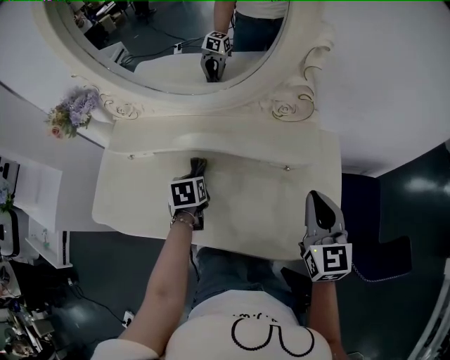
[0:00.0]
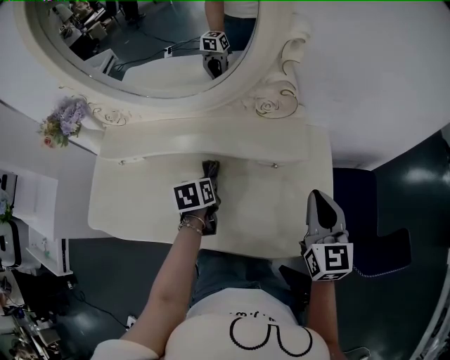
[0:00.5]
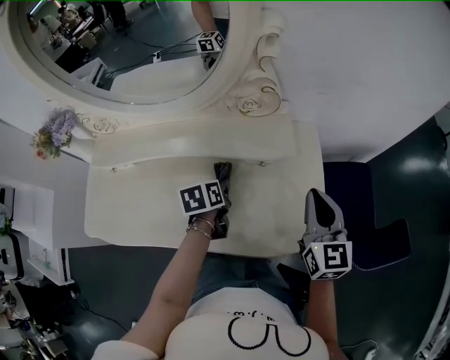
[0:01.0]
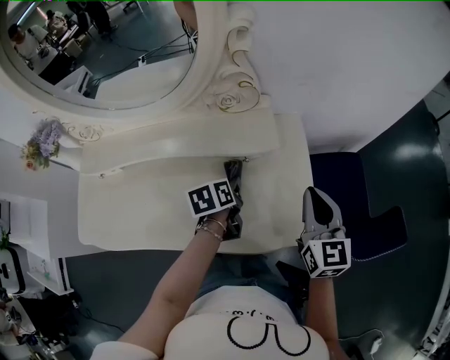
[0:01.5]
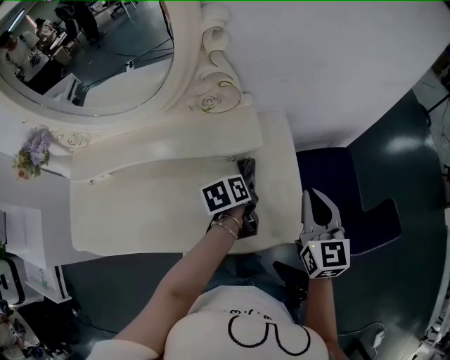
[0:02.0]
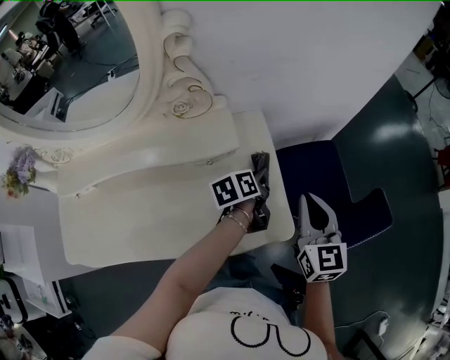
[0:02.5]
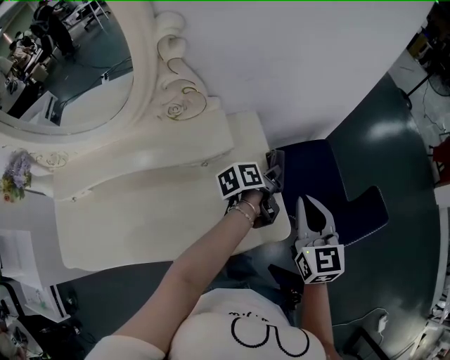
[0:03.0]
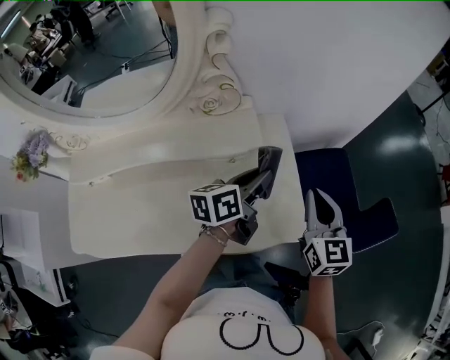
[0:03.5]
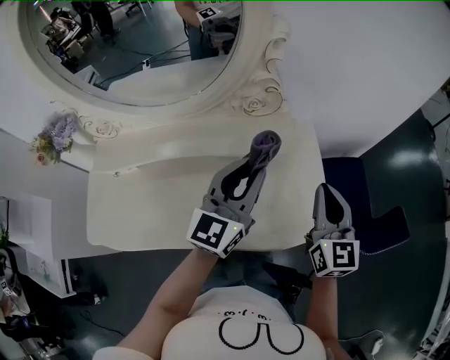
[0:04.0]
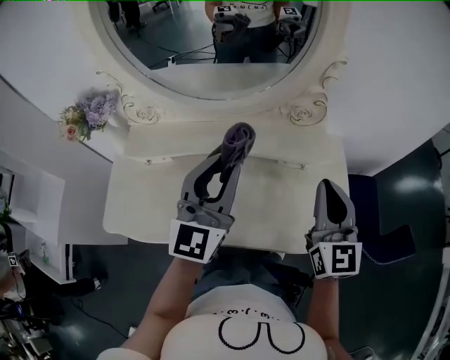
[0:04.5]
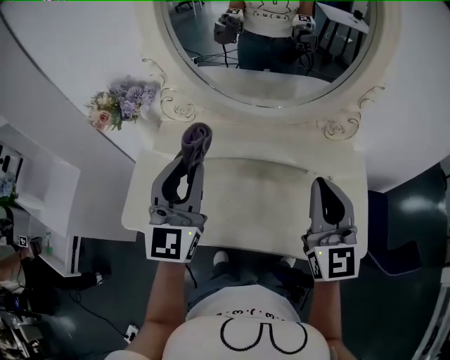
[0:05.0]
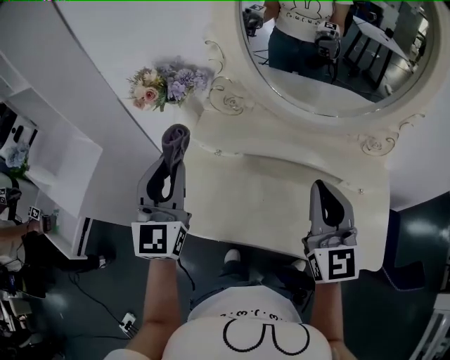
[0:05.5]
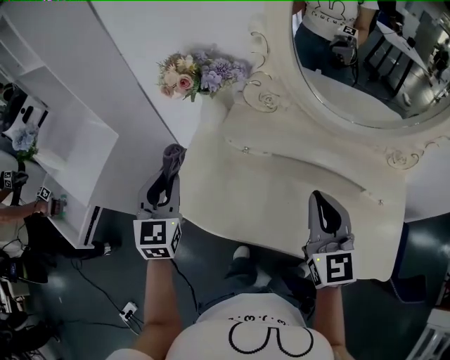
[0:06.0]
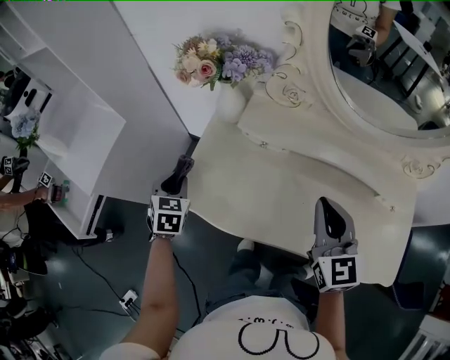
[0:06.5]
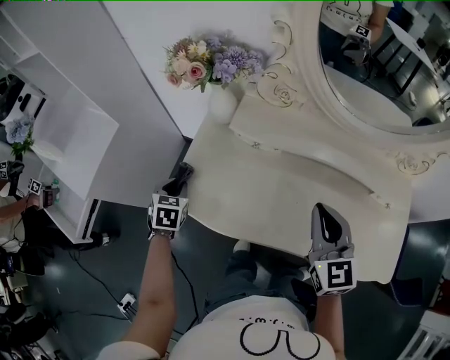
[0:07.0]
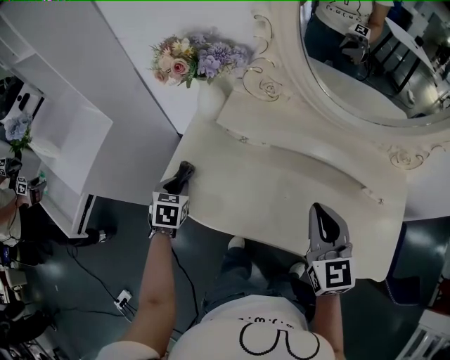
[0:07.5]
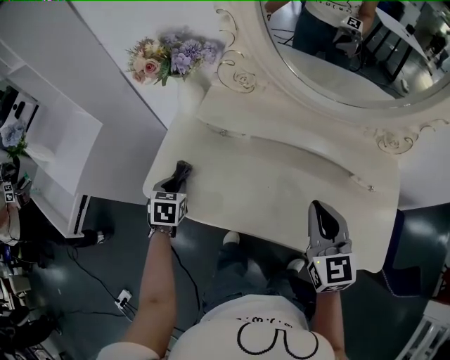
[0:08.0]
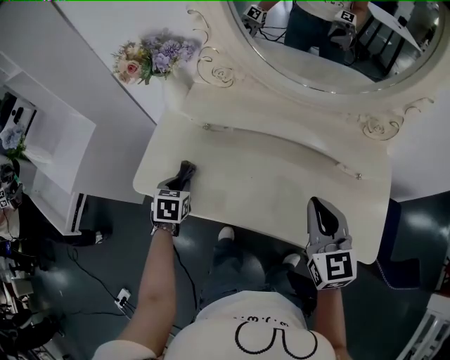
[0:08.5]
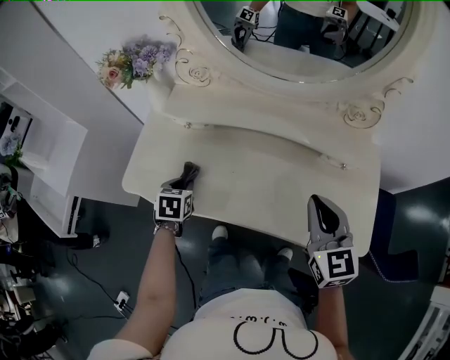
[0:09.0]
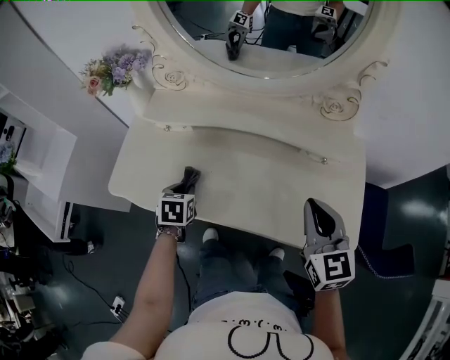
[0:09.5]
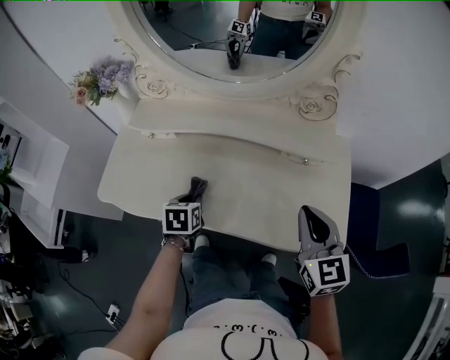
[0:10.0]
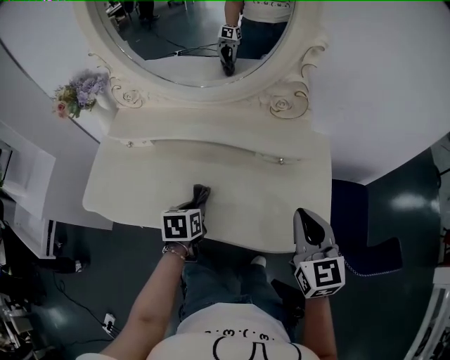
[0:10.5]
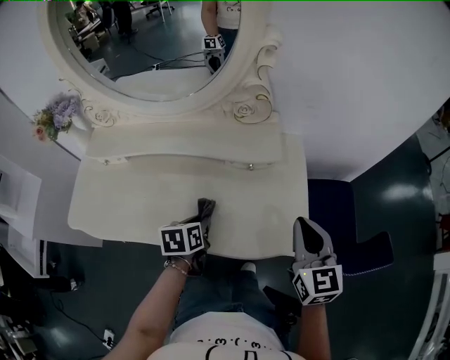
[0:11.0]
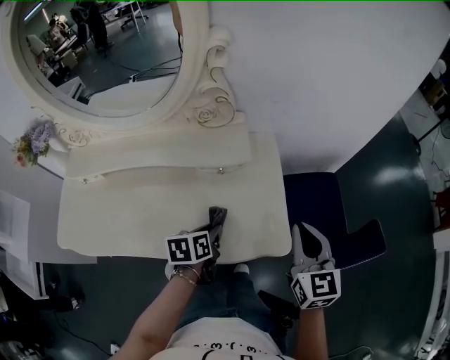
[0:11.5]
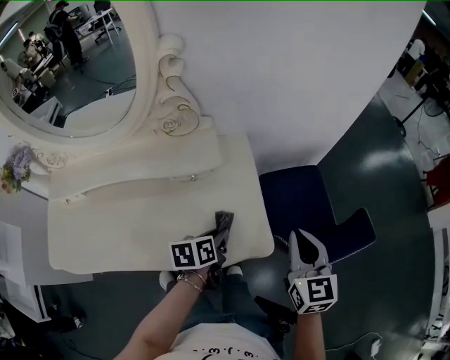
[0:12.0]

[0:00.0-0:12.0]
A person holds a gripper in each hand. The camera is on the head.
0:00.0 to 0:02.0: The right gripper moves roughly 15 cm; the left gripper ends up some 35 cm from where it was, and turns by roughly 30 degrees.
0:02.0 to 0:04.0: The left gripper moves upward, approximately 25 cm, and tilts its fingers about 50 degrees upward. The right gripper shifts some 10 cm to the left and upward.
0:04.0 to 0:06.0: The two grippers travel together, approximately 60 cm. The right gripper turns by approximately 30 degrees. The left gripper changes its angle by roughly 60 degrees.
0:06.0 to 0:08.0: The right gripper heads to the right and downward, covering some 10 cm. The left gripper heads downward, covering roughly 20 cm, and tips its fingers downward by roughly 40 degrees.
0:08.0 to 0:10.0: The left gripper travels to the right by some 30 cm. The right gripper travels to the right and backward by approximately 25 cm.
0:10.0 to 0:12.0: The left gripper ends up some 40 cm from where it was, and rotates some 30 degrees; the right gripper ends up roughly 30 cm from where it was, and swivels roughly 30 degrees.

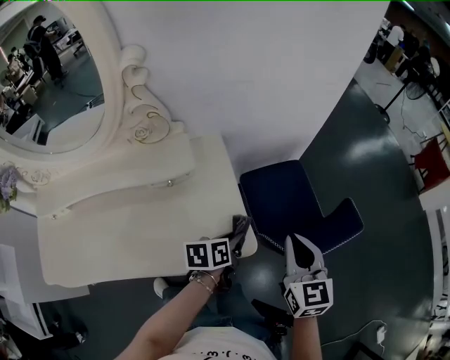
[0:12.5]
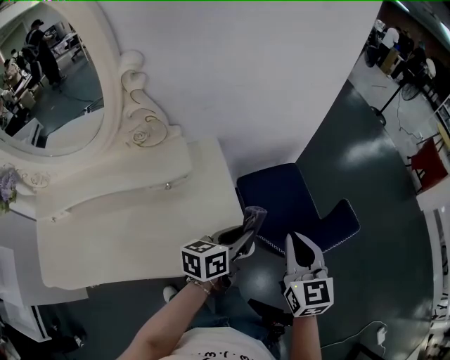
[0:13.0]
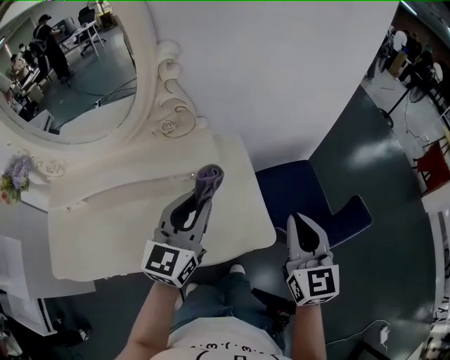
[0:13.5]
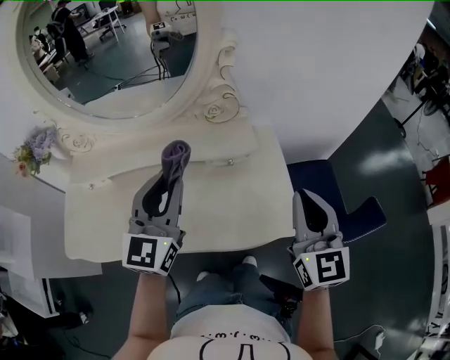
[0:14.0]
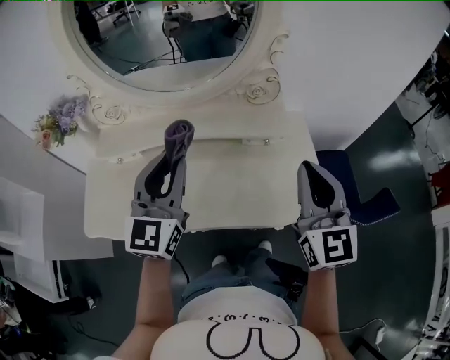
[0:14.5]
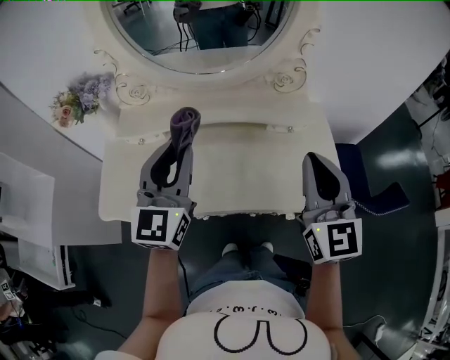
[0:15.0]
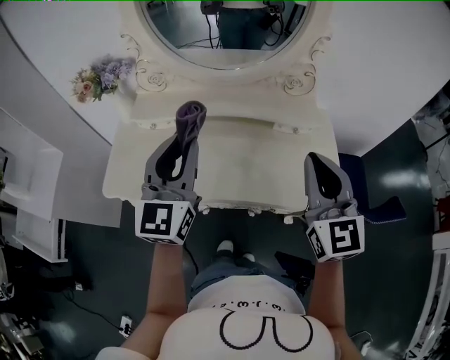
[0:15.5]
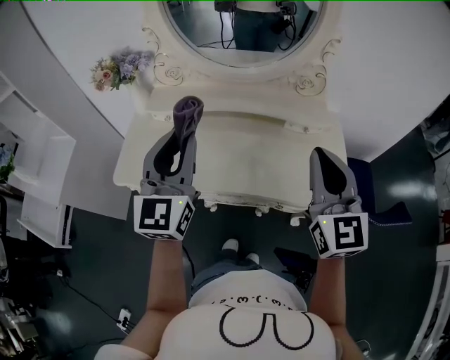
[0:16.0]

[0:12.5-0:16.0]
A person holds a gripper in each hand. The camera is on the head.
0:12.5 to 0:14.5: The right gripper changes place by roughly 35 cm, and changes its angle by about 30 degrees. Meanwhile the left gripper shifts by roughly 50 cm, and points its fingers approximately 40 degrees further upward.
0:14.5 to 0:16.0: The right gripper moves to the left and backward, approximately 10 cm. The left gripper is displaced backward and to the left by approximately 15 cm.

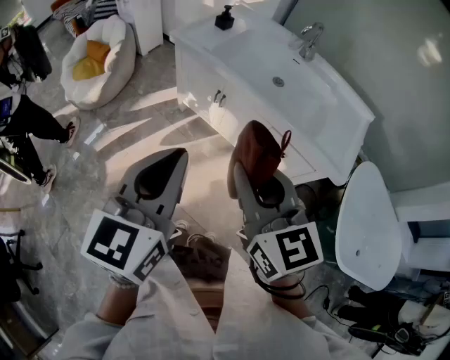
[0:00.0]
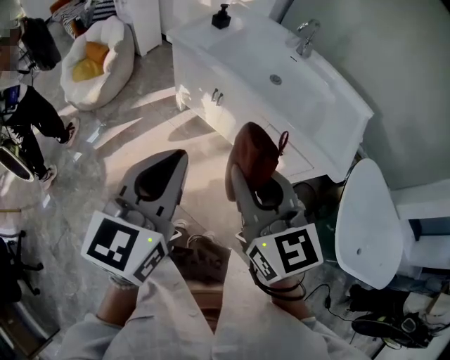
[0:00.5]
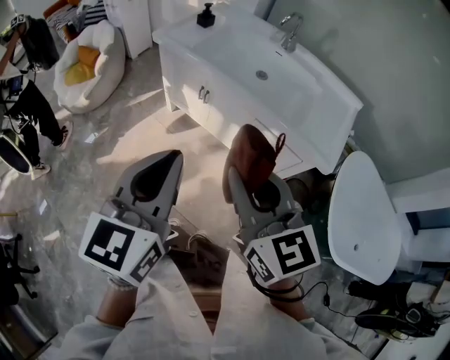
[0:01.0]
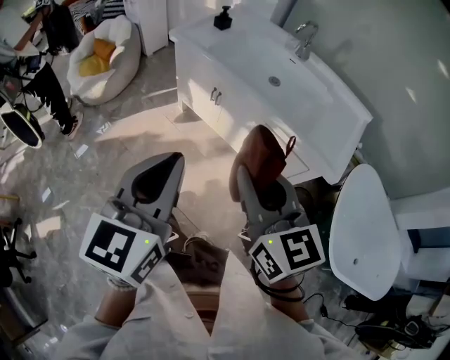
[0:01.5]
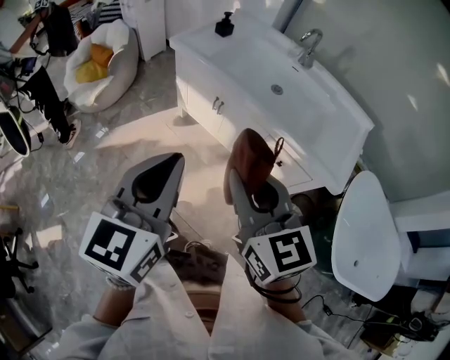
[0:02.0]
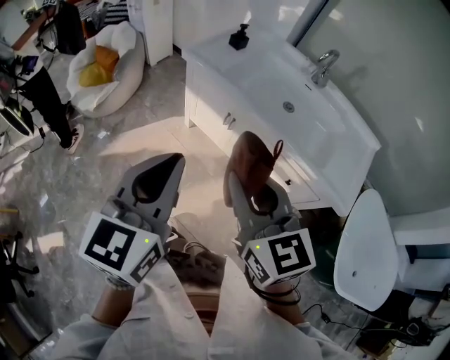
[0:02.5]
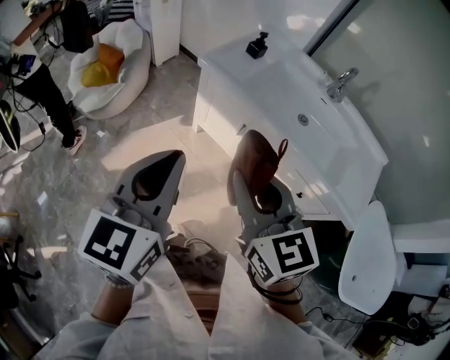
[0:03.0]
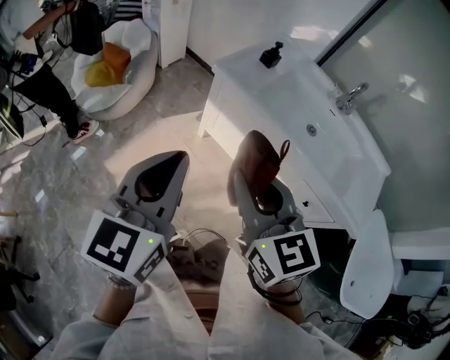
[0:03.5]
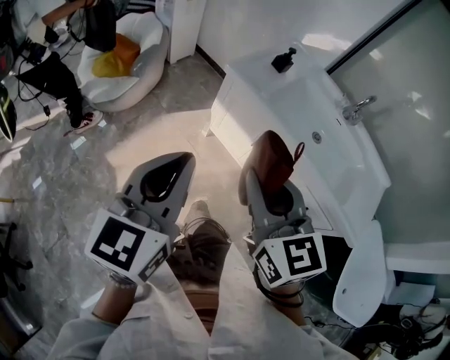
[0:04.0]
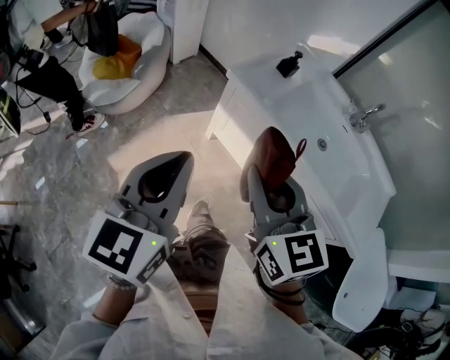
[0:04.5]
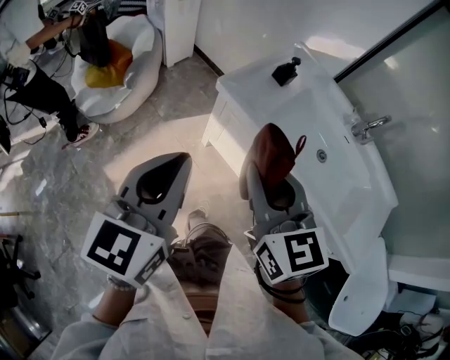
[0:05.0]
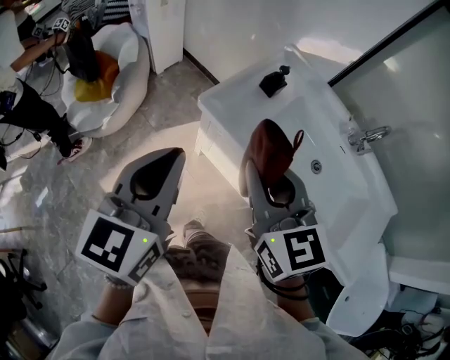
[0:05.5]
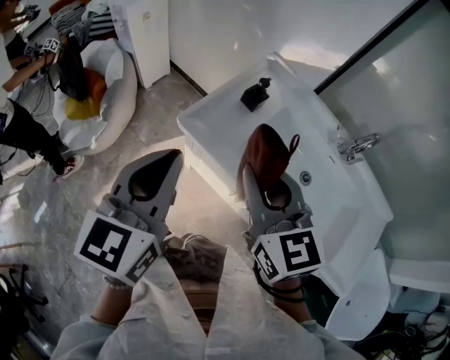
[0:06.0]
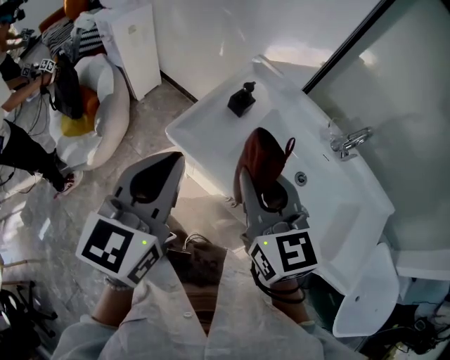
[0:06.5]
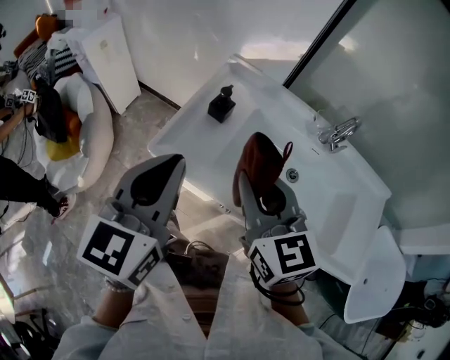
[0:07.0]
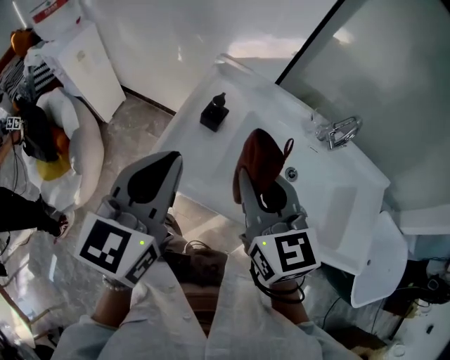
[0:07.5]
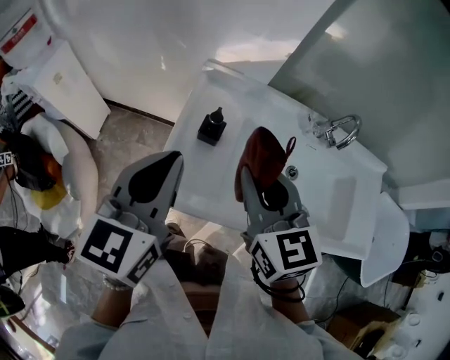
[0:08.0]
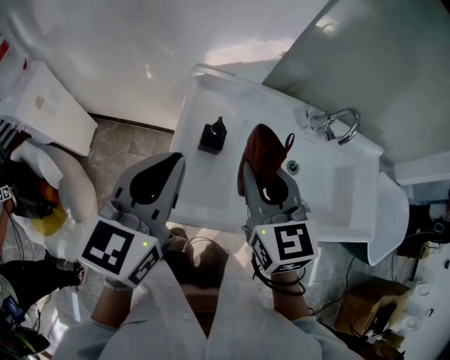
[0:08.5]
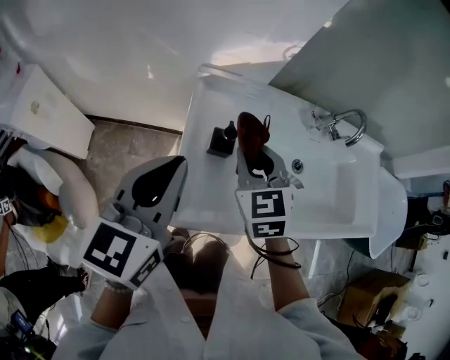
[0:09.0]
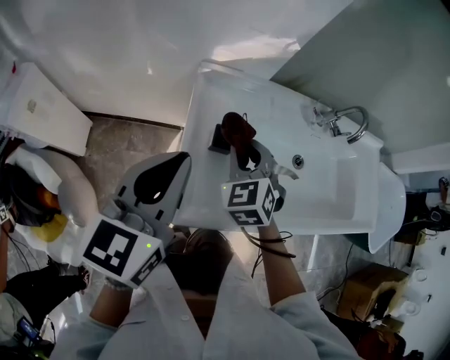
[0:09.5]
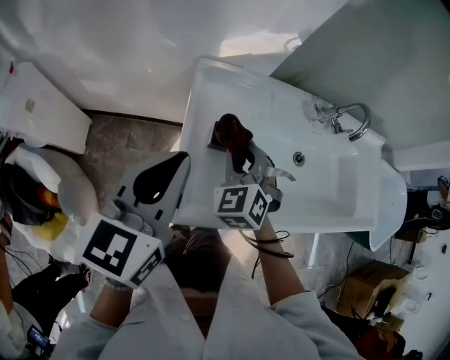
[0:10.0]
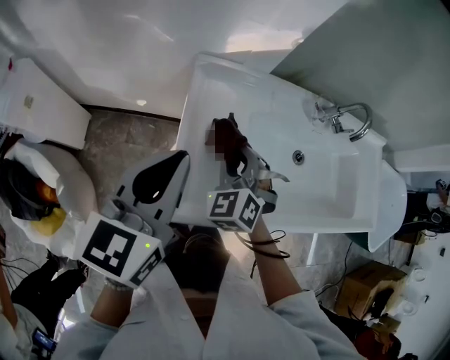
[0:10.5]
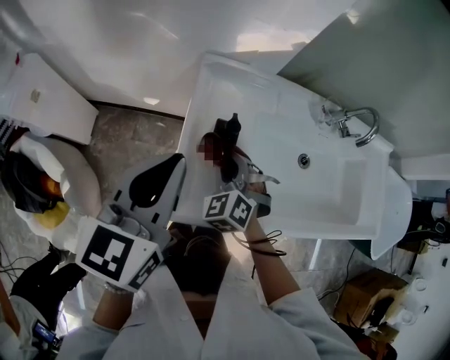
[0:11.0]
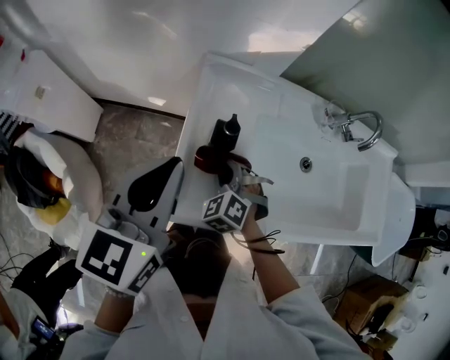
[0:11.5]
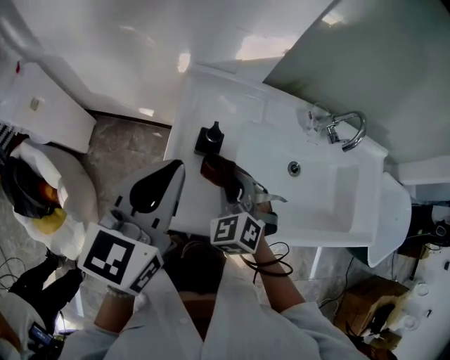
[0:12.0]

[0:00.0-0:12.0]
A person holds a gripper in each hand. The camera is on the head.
0:02.0 to 0:04.0: The two grippers go approximately 30 cm to the left and forward.
0:04.0 to 0:06.0: The grippers both shift forward by some 35 cm.
0:06.0 to 0:08.0: The right gripper ends up about 20 cm from where it was, and rotates about 30 degrees. The left gripper changes place by approximately 25 cm, and turns by approximately 30 degrees.
0:08.0 to 0:10.0: The right gripper goes approximately 20 cm downward, forward and to the left, and swivels roughly 40 degrees. Meanwhile the left gripper moves to the left and forward, some 10 cm.
0:10.0 to 0:12.0: The right gripper moves to the right, roughly 5 cm, and moves some 10 cm downward and comes back.
